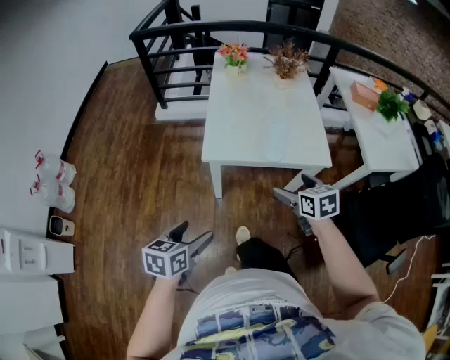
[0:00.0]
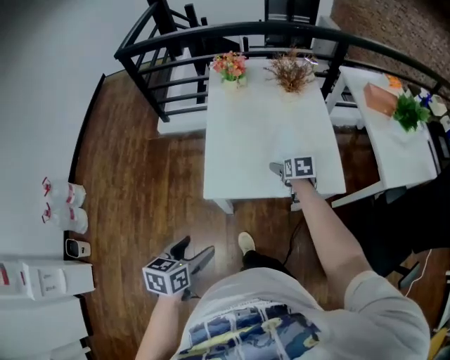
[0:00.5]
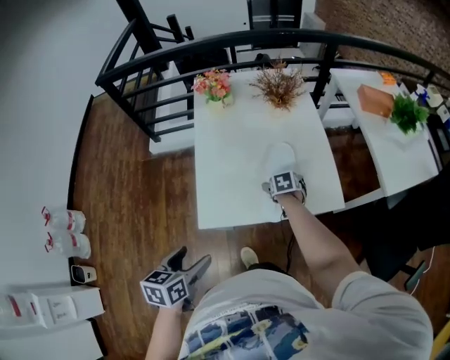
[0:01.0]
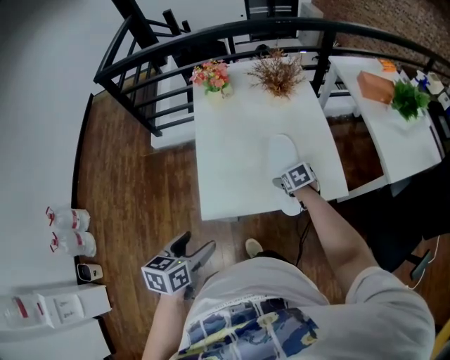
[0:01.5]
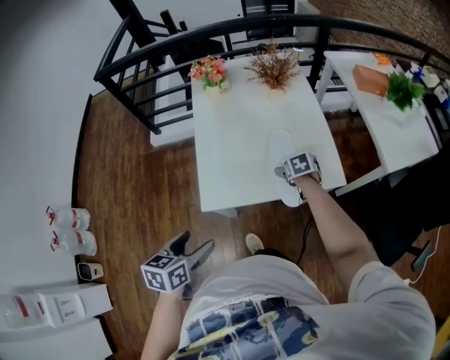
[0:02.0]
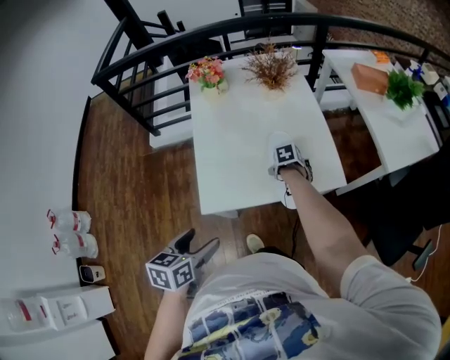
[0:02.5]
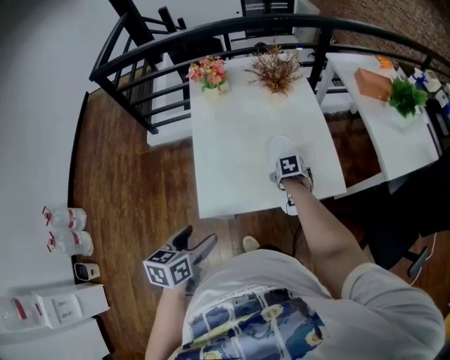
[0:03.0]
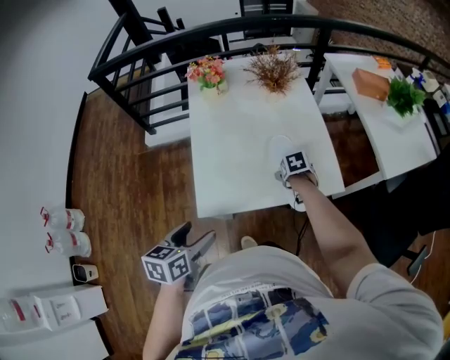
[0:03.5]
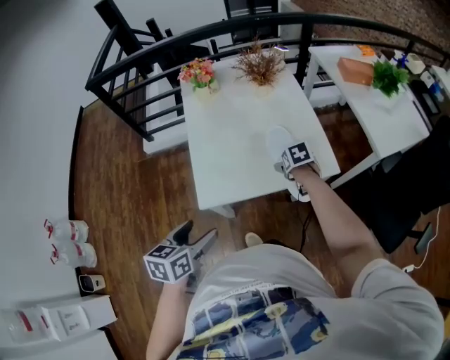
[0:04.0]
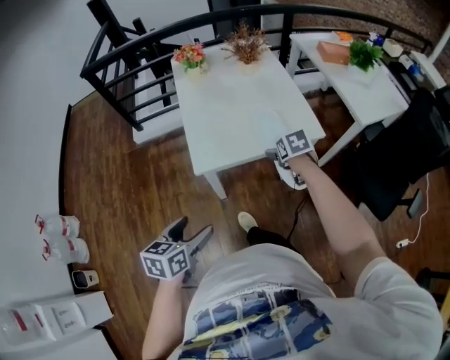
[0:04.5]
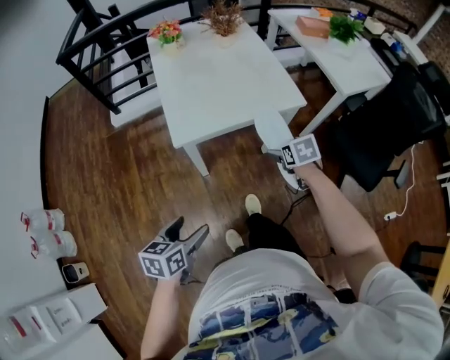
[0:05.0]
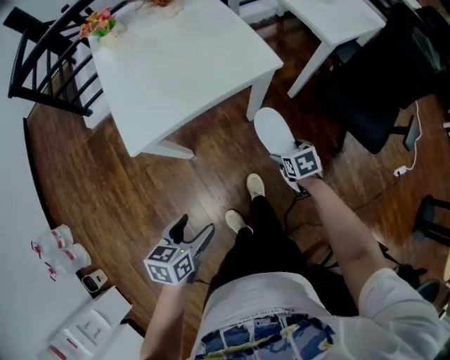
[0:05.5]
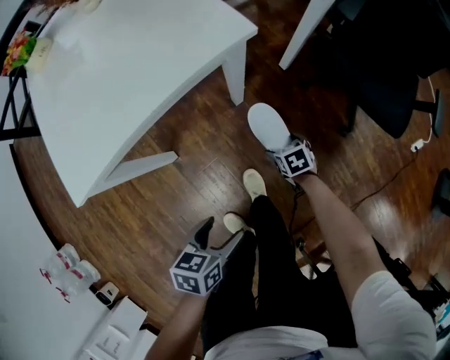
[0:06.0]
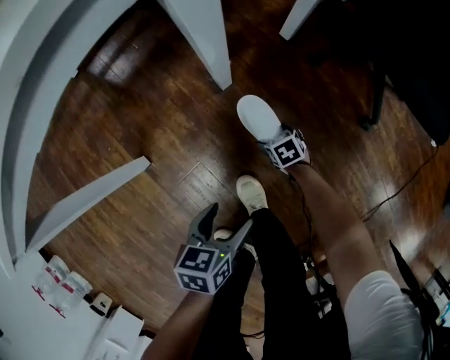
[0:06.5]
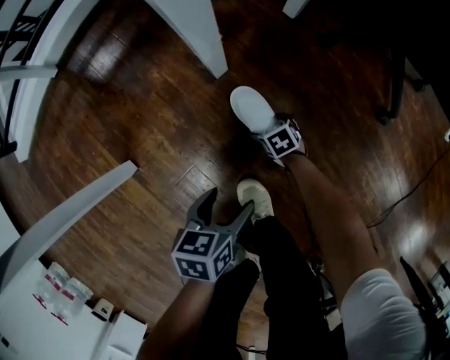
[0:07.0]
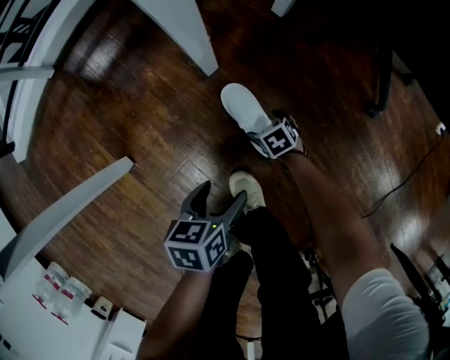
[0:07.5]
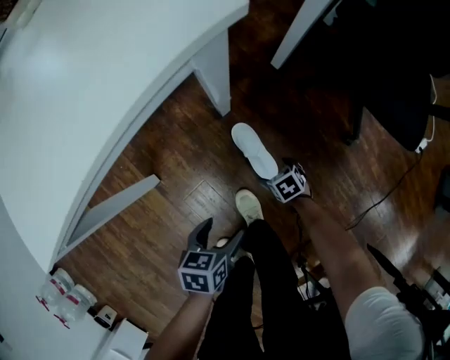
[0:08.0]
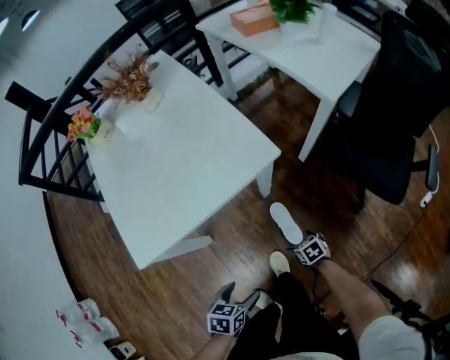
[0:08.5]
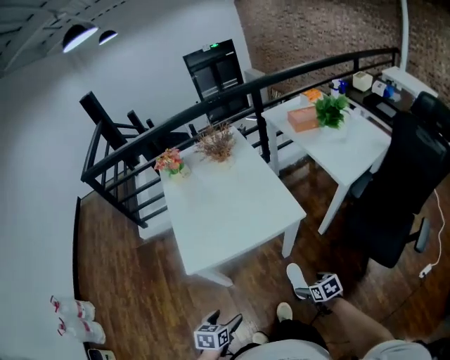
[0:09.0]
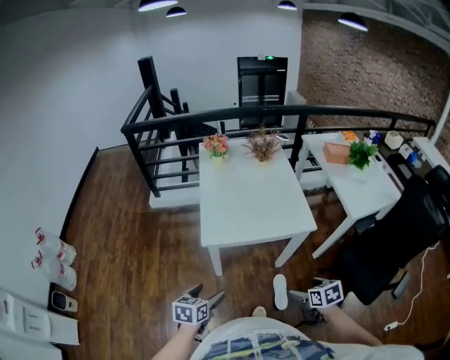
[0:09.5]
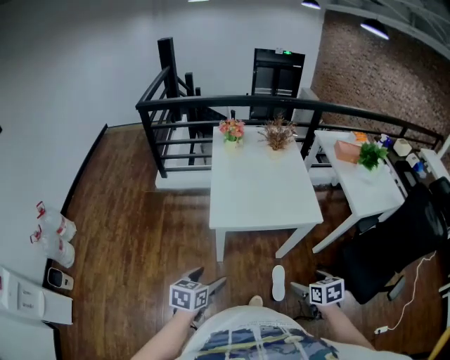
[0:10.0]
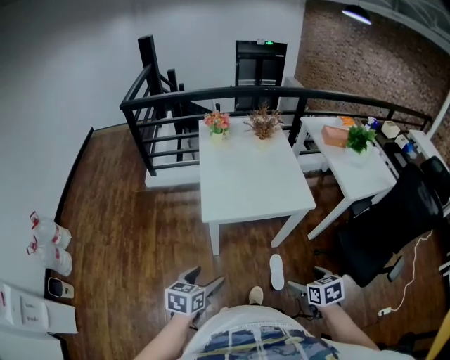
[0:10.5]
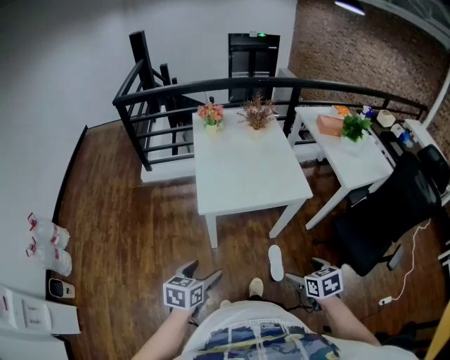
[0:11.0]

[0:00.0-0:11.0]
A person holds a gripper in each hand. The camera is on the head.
0:00.0 to 0:02.0: The right gripper is displaced forward and downward by approximately 35 cm, and changes its angle by roughly 30 degrees. Meanwhile the left gripper moves forward, approximately 20 cm.
0:02.0 to 0:03.5: The left gripper moves approximately 5 cm.
0:03.5 to 0:05.5: The left gripper goes approximately 30 cm backward, to the right and downward, and swivels approximately 20 degrees. The right gripper shifts about 40 cm backward and to the right.
0:05.5 to 0:07.5: Both grippers move downward, approximately 60 cm.
0:07.5 to 0:09.0: The right gripper is displaced upward by roughly 70 cm, while the left gripper heads upward and to the left, covering about 60 cm, and turns by roughly 30 degrees.
0:09.0 to 0:11.0: Both grippers move upward, to the left and backward, approximately 25 cm.

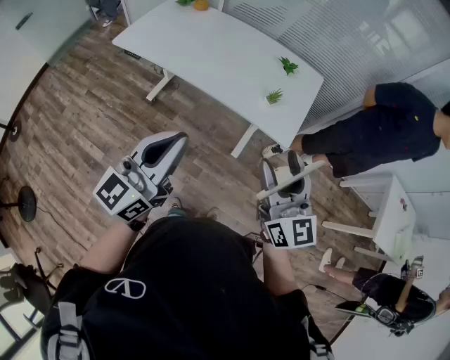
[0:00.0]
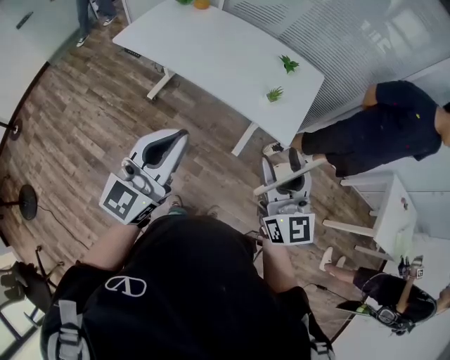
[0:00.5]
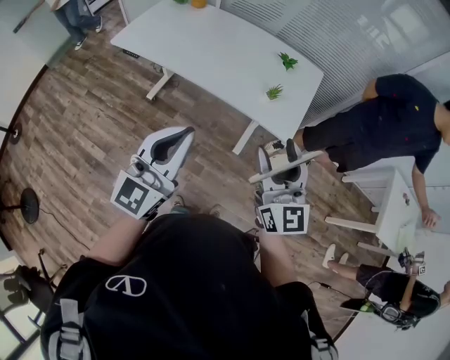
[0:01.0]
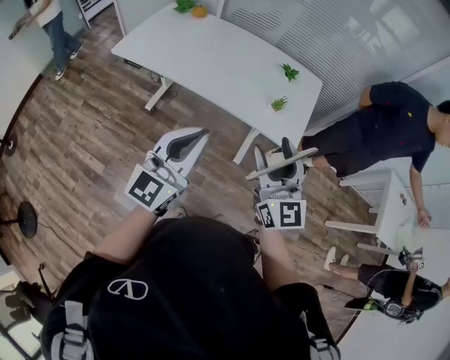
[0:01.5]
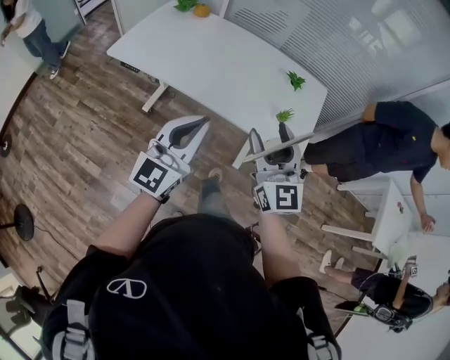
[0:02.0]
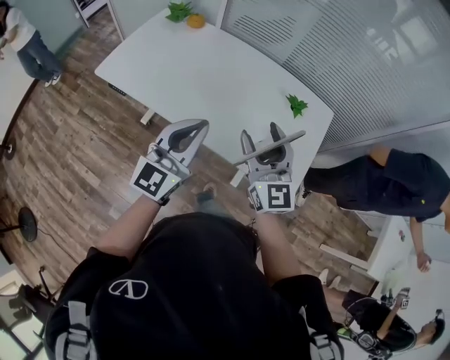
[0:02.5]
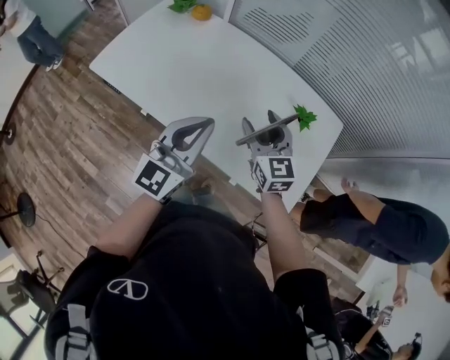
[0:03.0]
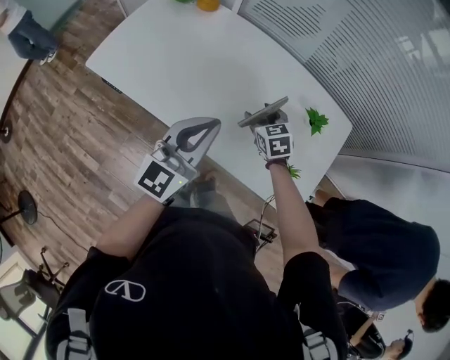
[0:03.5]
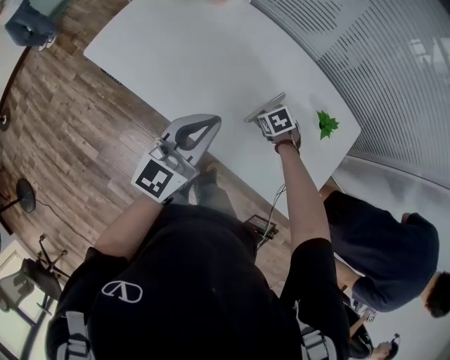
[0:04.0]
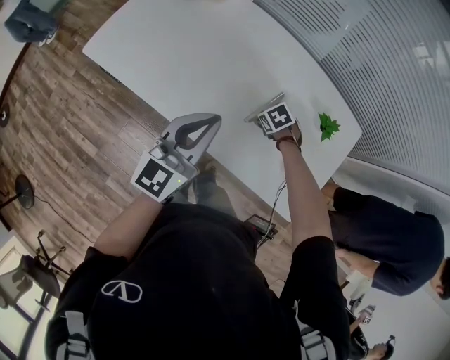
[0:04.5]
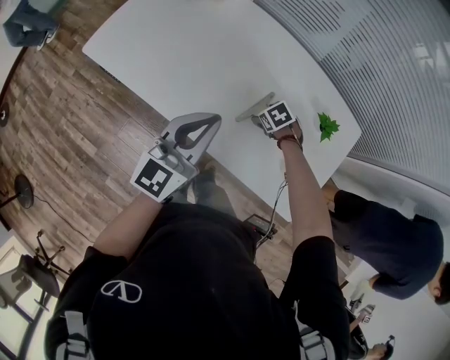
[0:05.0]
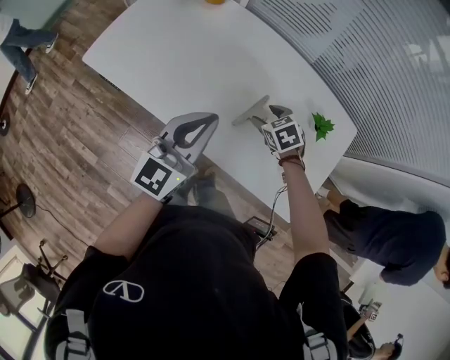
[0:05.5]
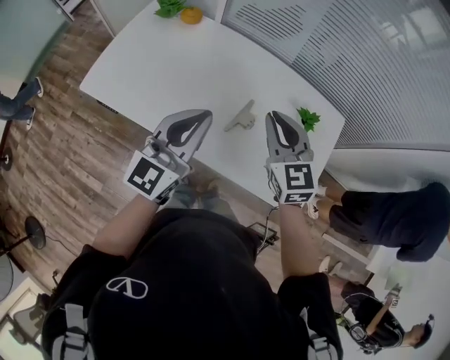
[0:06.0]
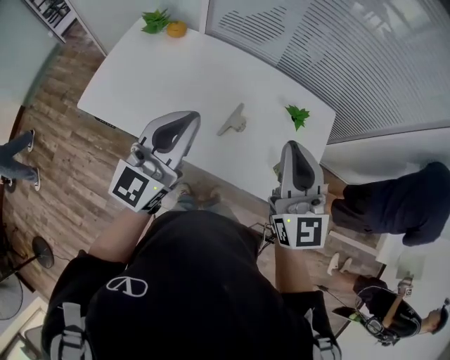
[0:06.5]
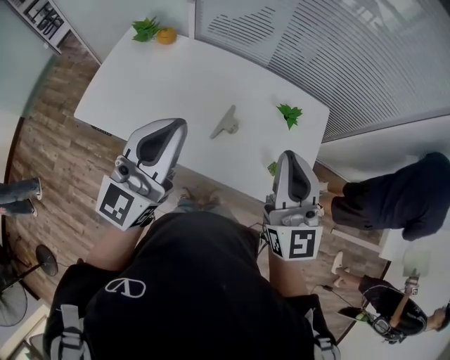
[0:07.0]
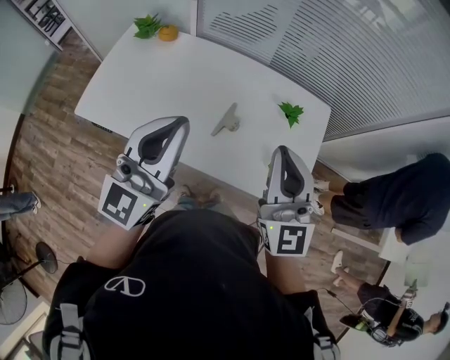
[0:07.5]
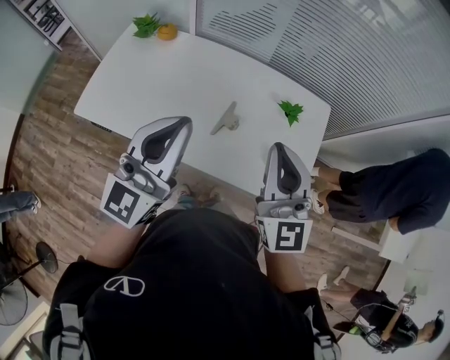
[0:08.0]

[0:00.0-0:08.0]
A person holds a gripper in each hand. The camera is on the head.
0:00.0 to 0:02.0: The left gripper is displaced forward, to the left and downward by roughly 20 cm. The right gripper moves forward and to the left, about 20 cm.
0:02.0 to 0:04.0: The left gripper ends up roughly 35 cm from where it was; the right gripper changes place by approximately 60 cm, and tilts its fingers approximately 80 degrees downward.
0:04.0 to 0:06.0: The left gripper heads upward, covering approximately 10 cm; the right gripper moves upward, approximately 35 cm, points its fingers some 50 degrees further upward, and closes its fingers.
0:06.0 to 0:08.0: The right gripper is displaced upward, backward and to the right by about 20 cm, and rotates roughly 30 degrees, while the left gripper shifts roughly 10 cm upward.

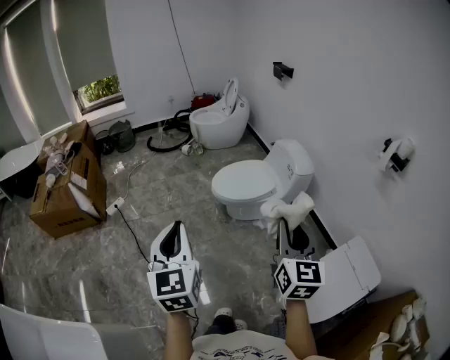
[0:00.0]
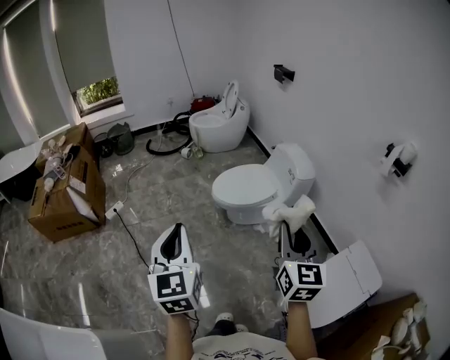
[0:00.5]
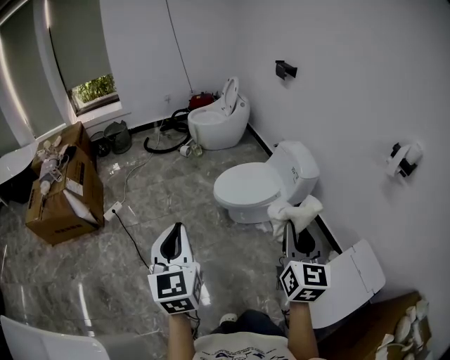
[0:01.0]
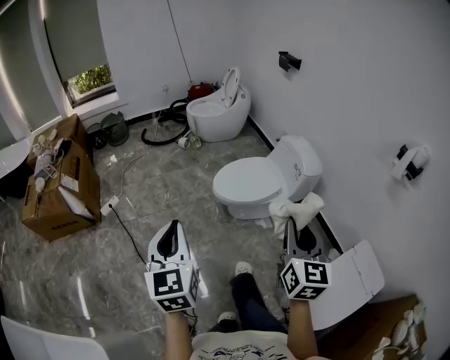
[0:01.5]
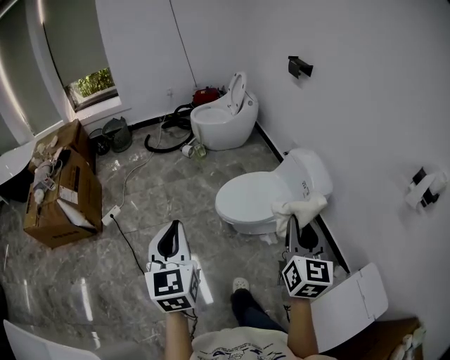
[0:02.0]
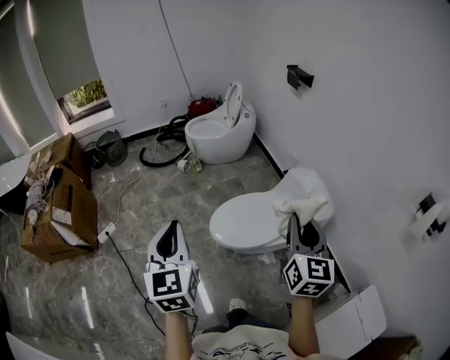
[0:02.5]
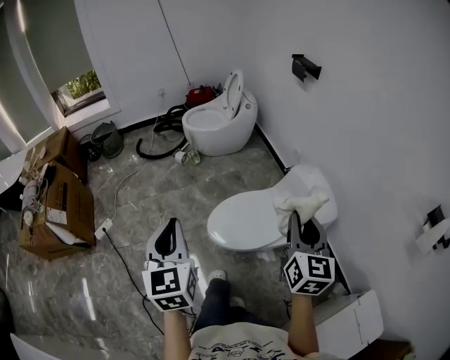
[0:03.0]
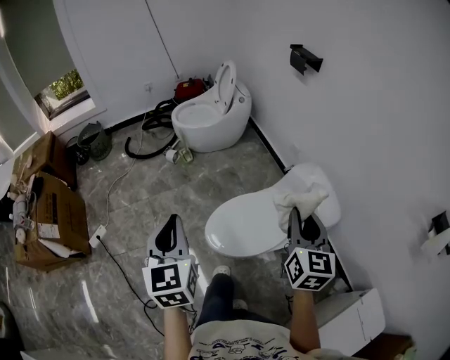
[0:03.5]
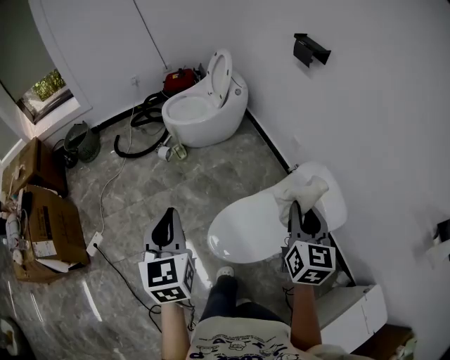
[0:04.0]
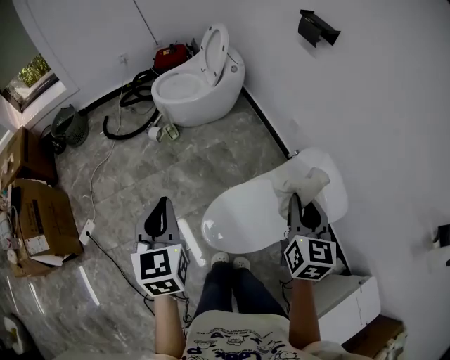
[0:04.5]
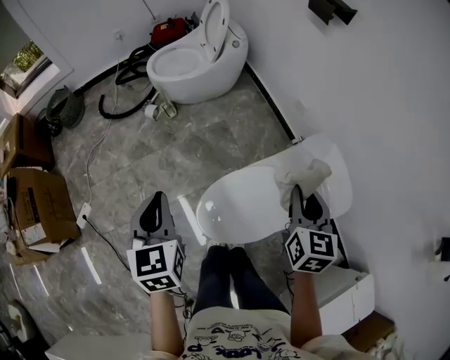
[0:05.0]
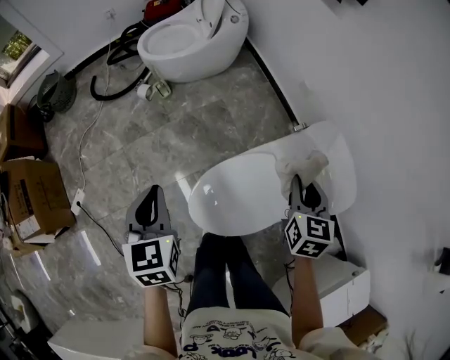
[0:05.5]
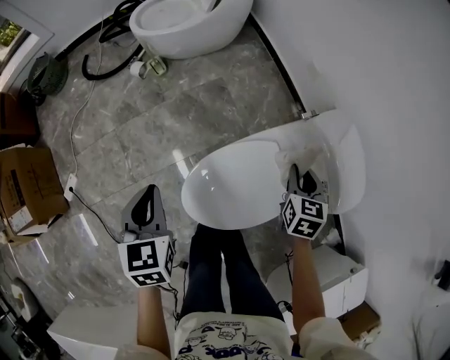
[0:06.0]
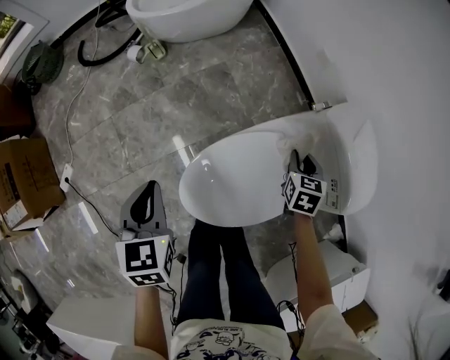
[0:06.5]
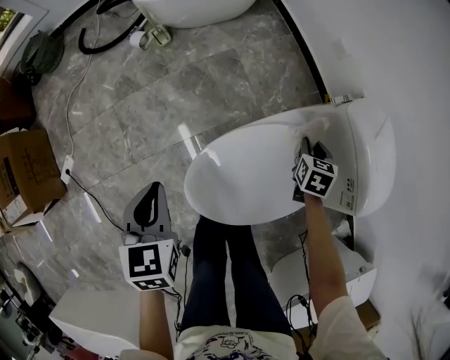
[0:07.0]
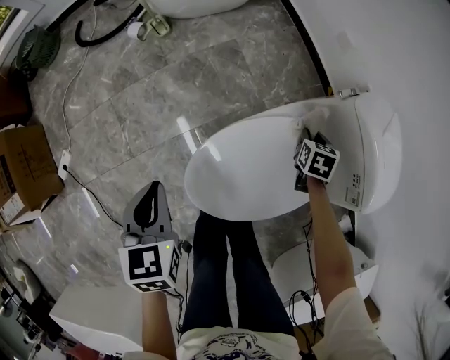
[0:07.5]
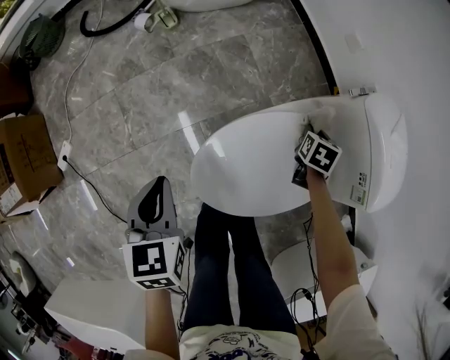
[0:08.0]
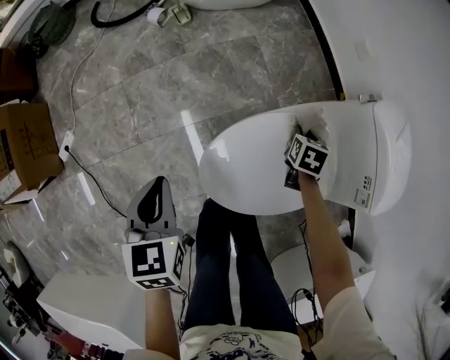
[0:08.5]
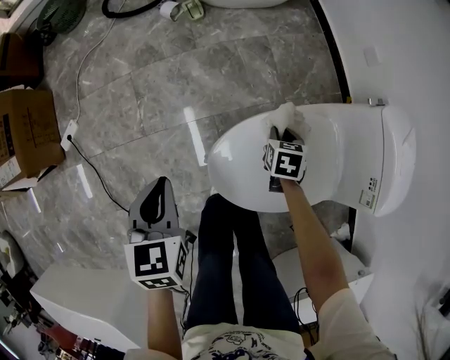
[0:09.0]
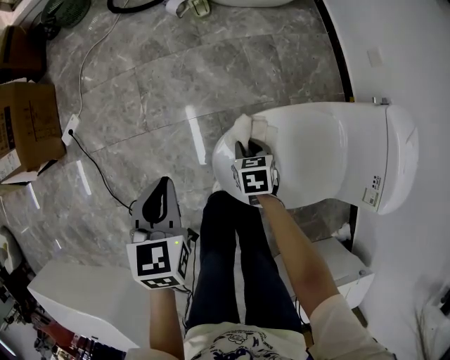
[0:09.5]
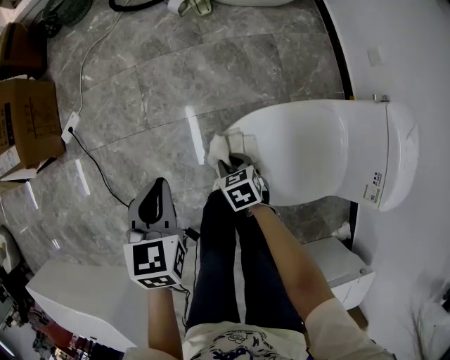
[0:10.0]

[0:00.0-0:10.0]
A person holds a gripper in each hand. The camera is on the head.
0:00.0 to 0:02.0: Both grippers move forward, roughly 25 cm.
0:02.0 to 0:04.0: The pair of grippers is taken forward, about 40 cm.
0:04.0 to 0:06.0: Both grippers move downward and forward, about 30 cm. The right gripper rotates some 30 degrees. Meanwhile the left gripper changes its angle by about 20 degrees.
0:06.0 to 0:08.0: The left gripper shifts some 10 cm downward. The right gripper heads downward, covering roughly 20 cm, and swivels approximately 20 degrees.
0:08.0 to 0:10.0: The right gripper moves roughly 40 cm, and turns by some 60 degrees. The left gripper changes place by about 15 cm.
